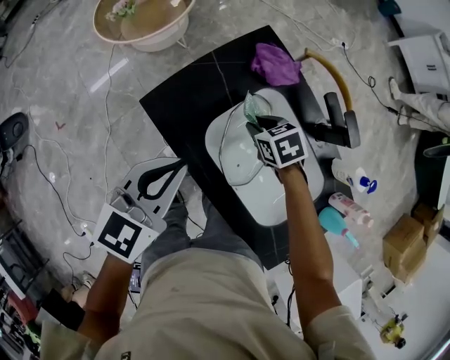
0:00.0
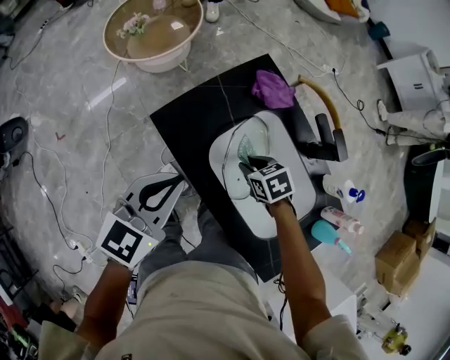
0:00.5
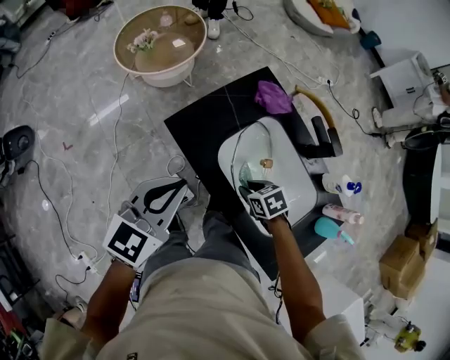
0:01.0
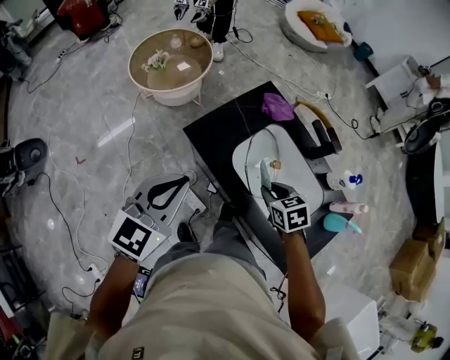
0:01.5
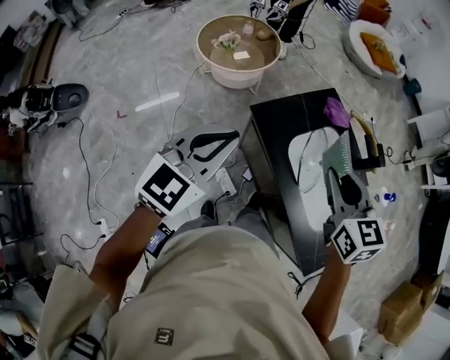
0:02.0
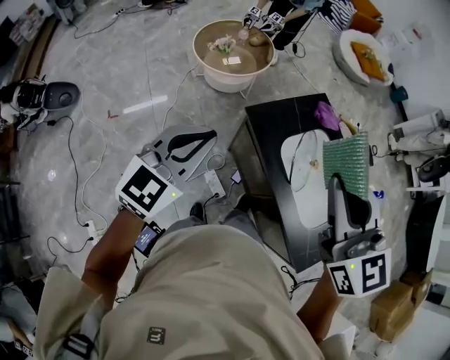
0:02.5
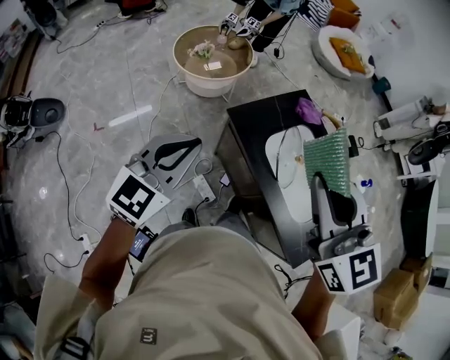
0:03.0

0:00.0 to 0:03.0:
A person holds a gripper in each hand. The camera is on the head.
0:00.0 to 0:01.5: The left gripper shifts some 20 cm upward, to the left and backward. The right gripper travels backward and upward by about 20 cm.
0:01.5 to 0:03.0: The left gripper goes about 15 cm to the left, backward and upward. Meanwhile the right gripper goes some 40 cm upward, and points its fingers approximately 50 degrees further upward.

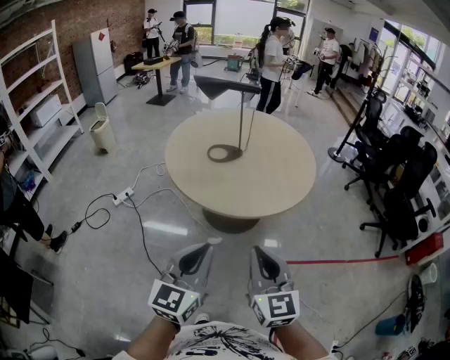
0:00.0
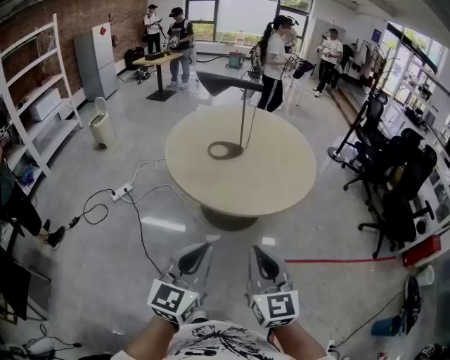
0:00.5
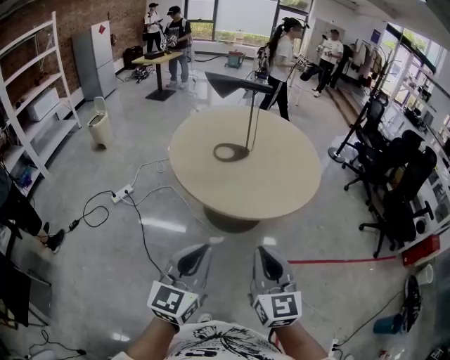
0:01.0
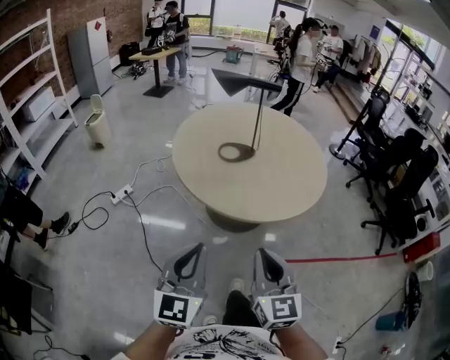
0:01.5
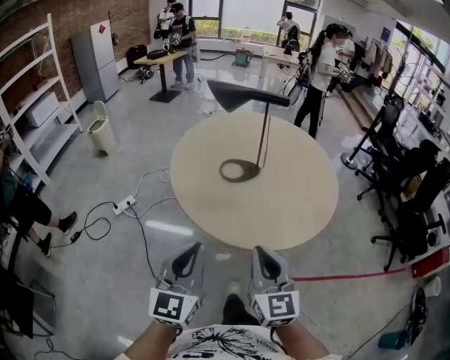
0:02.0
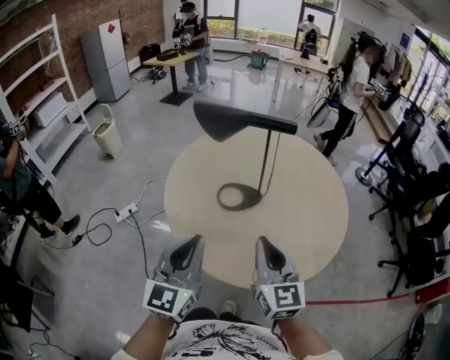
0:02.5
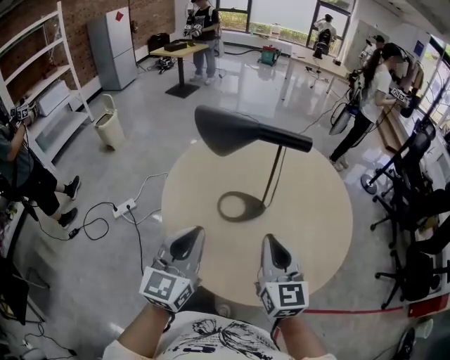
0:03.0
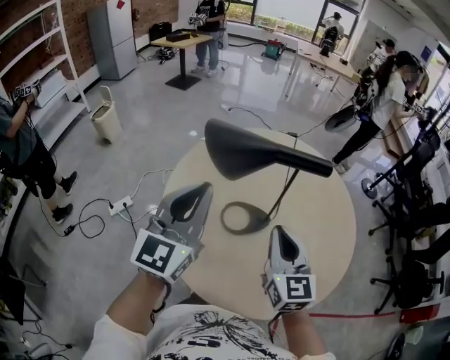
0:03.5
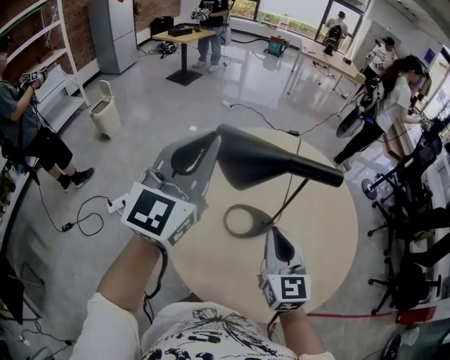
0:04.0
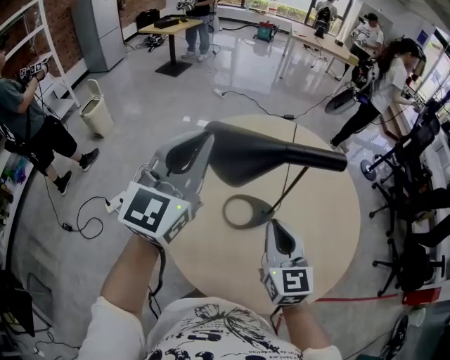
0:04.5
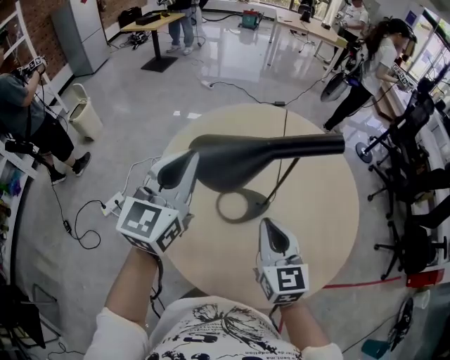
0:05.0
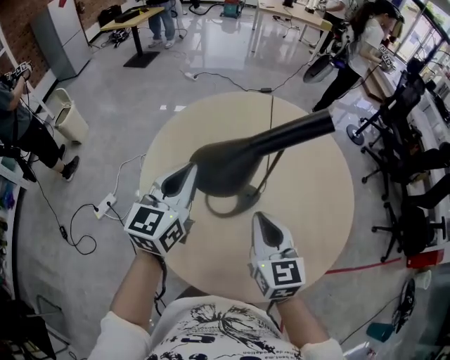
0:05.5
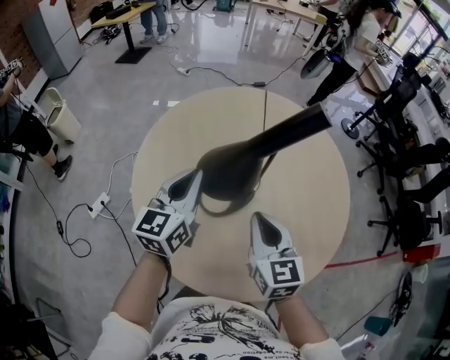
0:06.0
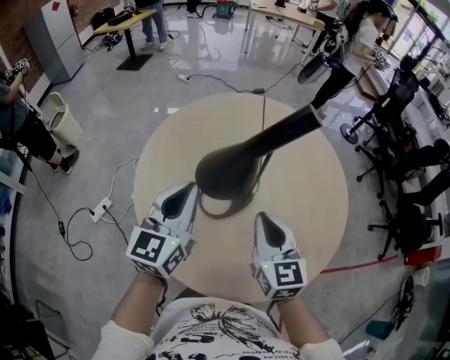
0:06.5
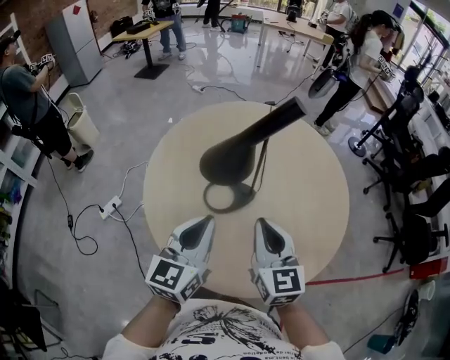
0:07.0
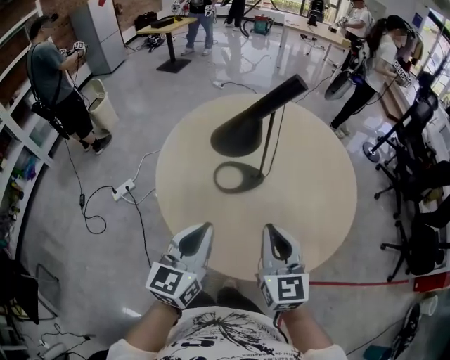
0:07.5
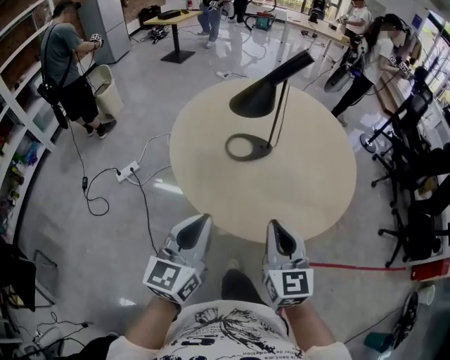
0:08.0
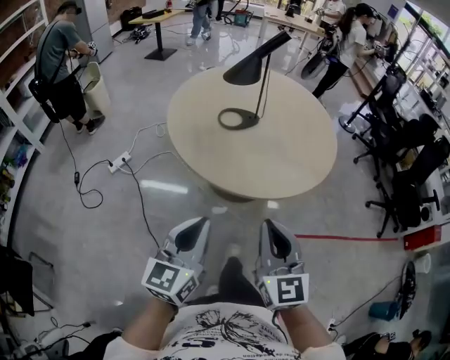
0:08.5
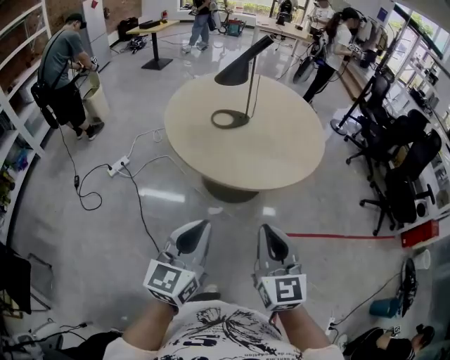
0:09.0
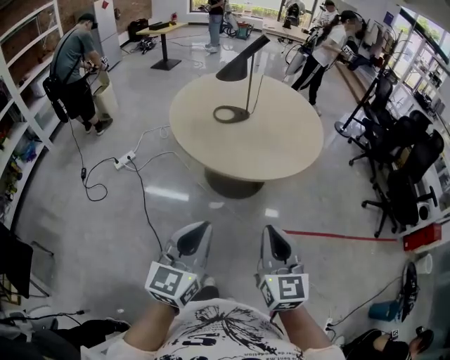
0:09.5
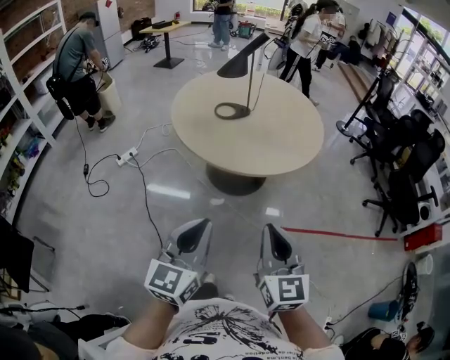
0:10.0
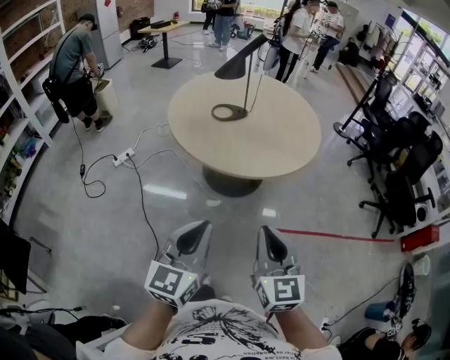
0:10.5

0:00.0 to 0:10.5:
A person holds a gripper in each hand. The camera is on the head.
0:00.0 to 0:02.0: Both grippers move forward and to the left, about 20 cm.
0:02.0 to 0:04.0: The right gripper heads forward, covering approximately 35 cm. Meanwhile the left gripper travels forward and upward by approximately 50 cm.
0:04.0 to 0:06.5: The right gripper changes place by about 5 cm; the left gripper is displaced downward by some 20 cm, and changes its angle by roughly 30 degrees.
0:06.5 to 0:08.5: The pair of grippers is taken backward, roughly 50 cm.
0:08.5 to 0:10.5: The grippers both shift backward and to the right by roughly 15 cm.

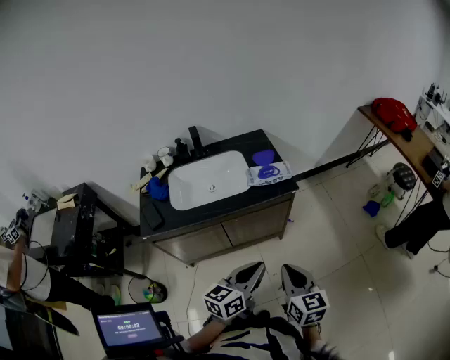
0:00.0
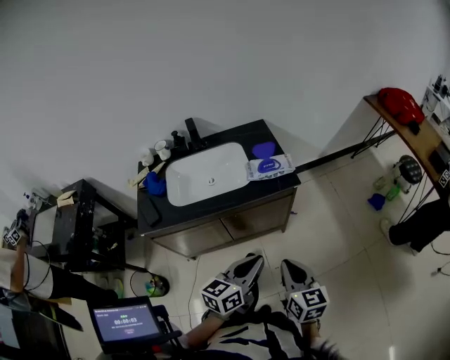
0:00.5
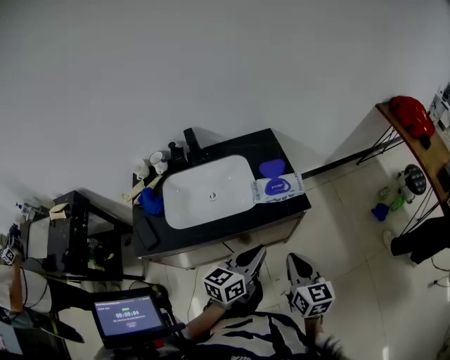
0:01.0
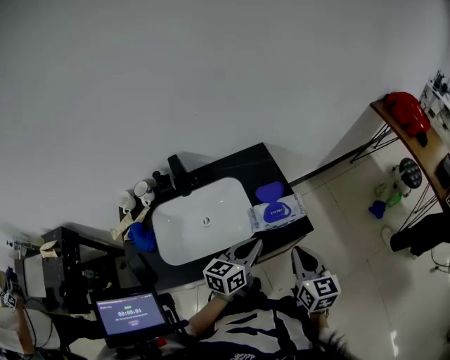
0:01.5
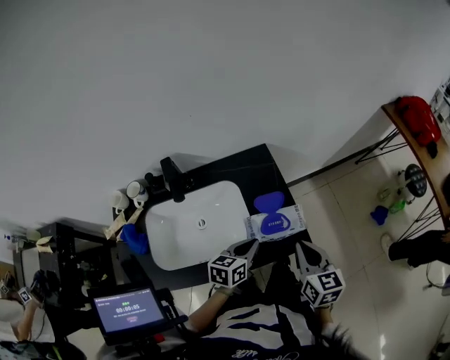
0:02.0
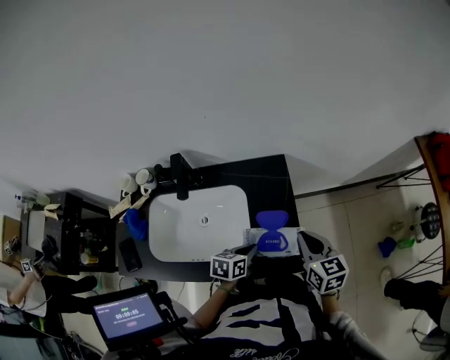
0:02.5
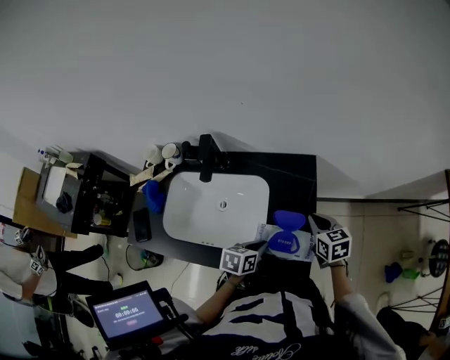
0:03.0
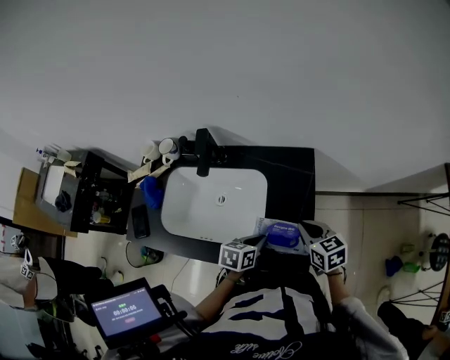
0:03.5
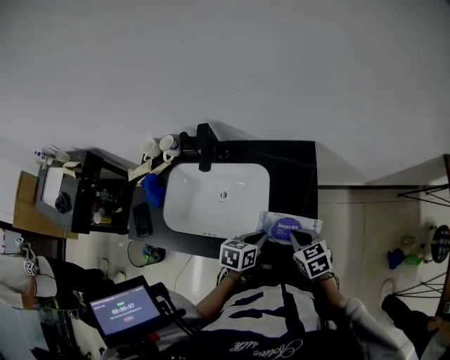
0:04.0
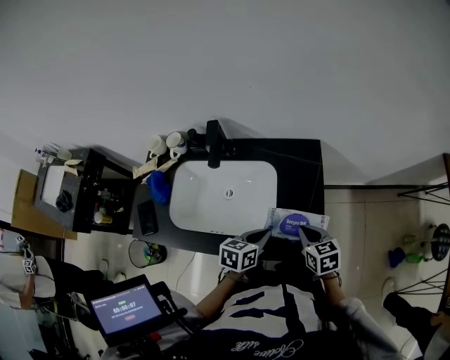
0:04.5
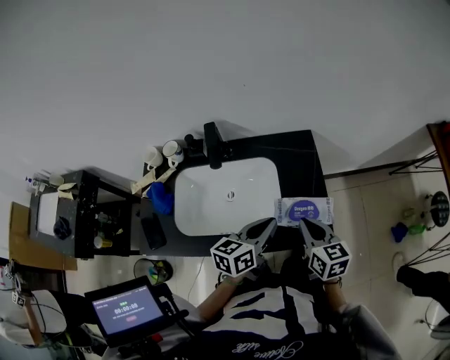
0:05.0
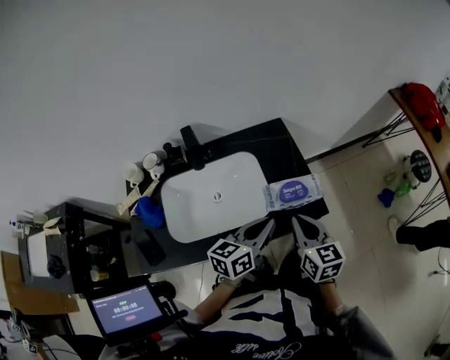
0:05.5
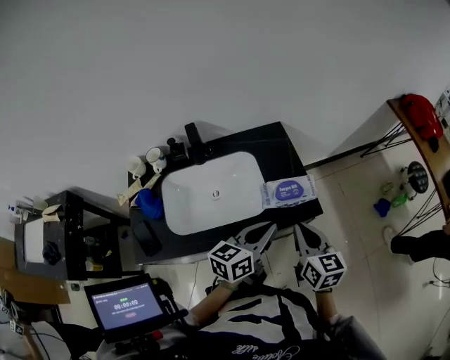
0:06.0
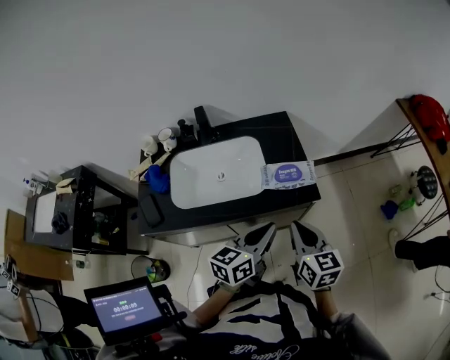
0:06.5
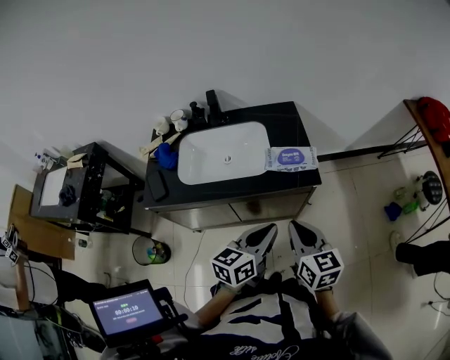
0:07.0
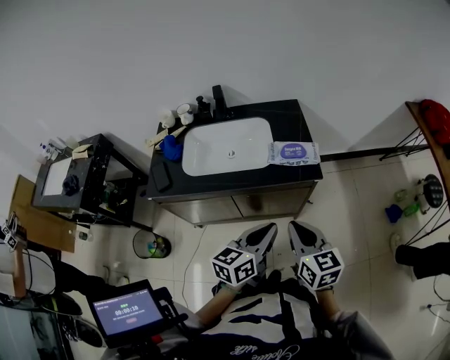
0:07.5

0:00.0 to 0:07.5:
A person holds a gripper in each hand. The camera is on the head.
0:00.0 to 0:02.0: The grippers both shift forward by some 40 cm. The left gripper turns by about 20 degrees.
0:02.0 to 0:04.0: The left gripper is displaced downward by about 5 cm, and swivels some 20 degrees. The right gripper goes about 15 cm downward, and changes its angle by roughly 50 degrees.
0:04.0 to 0:05.5: Both grippers move upward, roughly 15 cm. The right gripper turns by roughly 40 degrees, while the left gripper points its fingers some 30 degrees further upward.
0:05.5 to 0:07.5: The grippers both shift backward by some 20 cm.

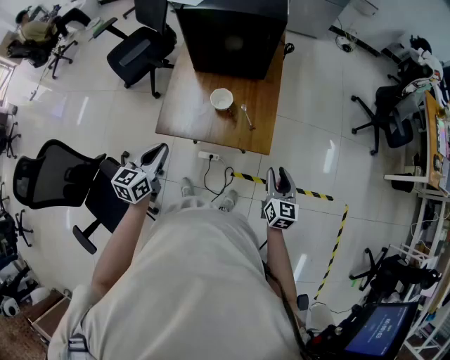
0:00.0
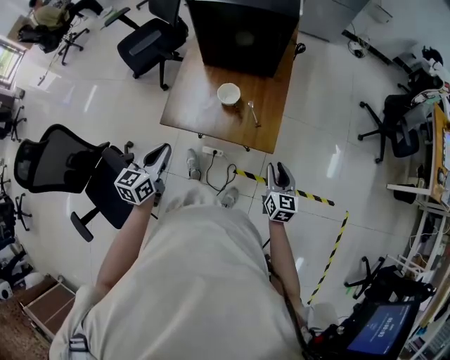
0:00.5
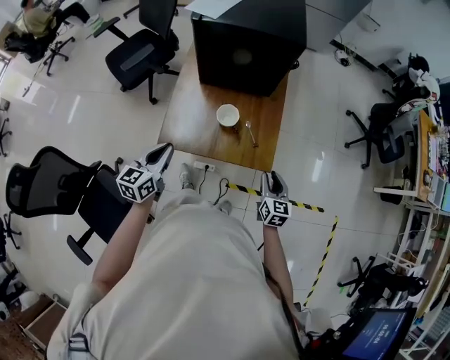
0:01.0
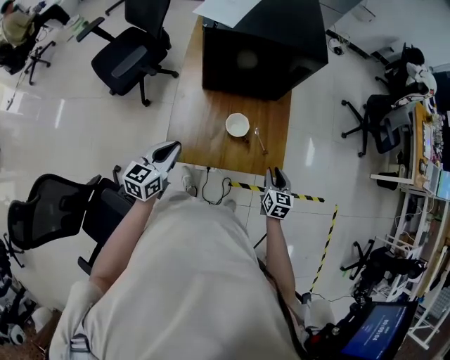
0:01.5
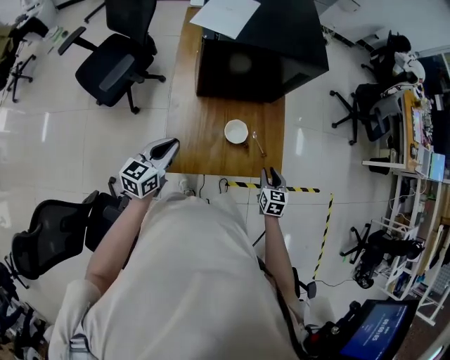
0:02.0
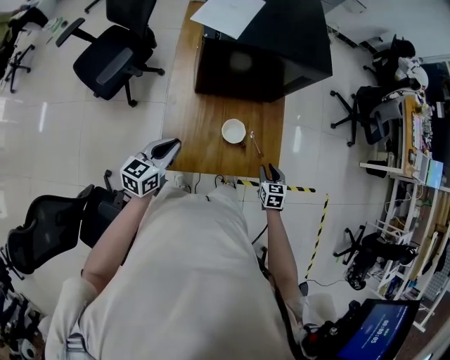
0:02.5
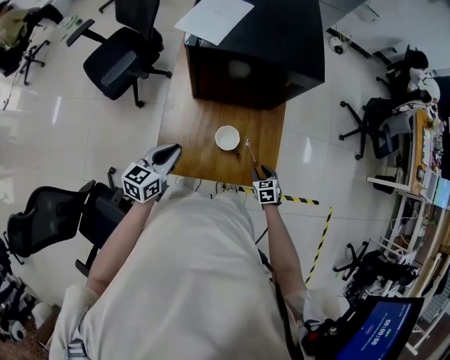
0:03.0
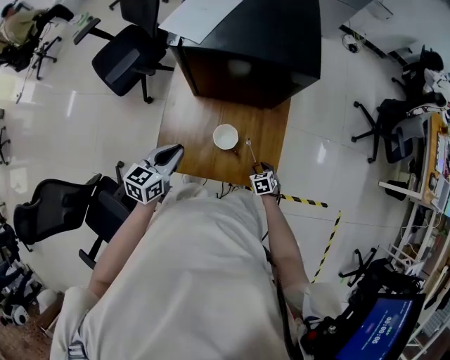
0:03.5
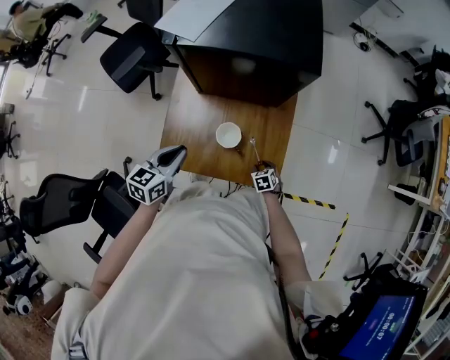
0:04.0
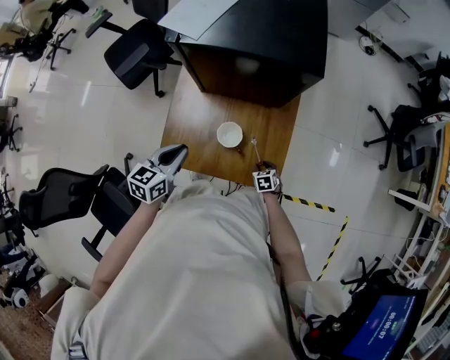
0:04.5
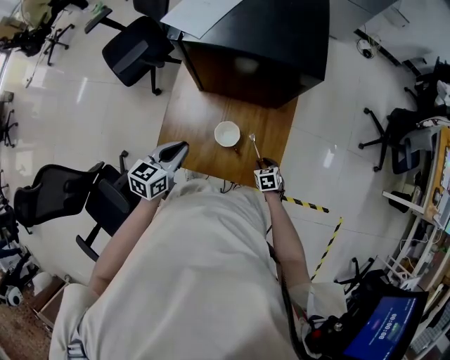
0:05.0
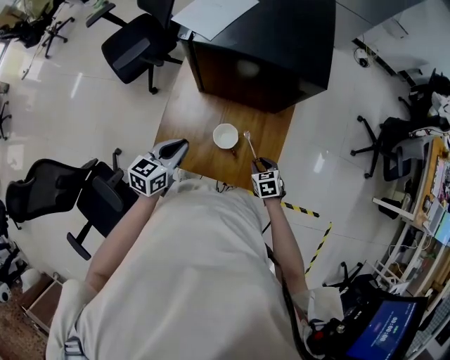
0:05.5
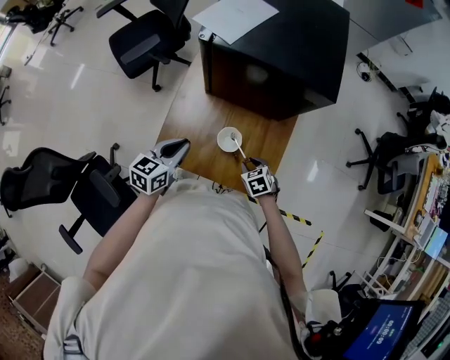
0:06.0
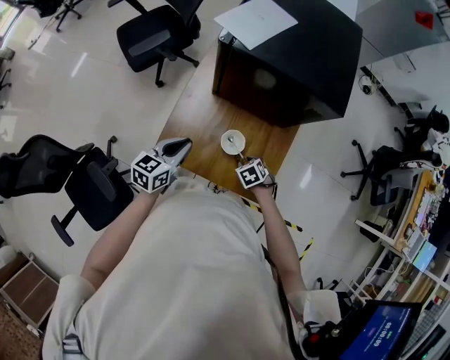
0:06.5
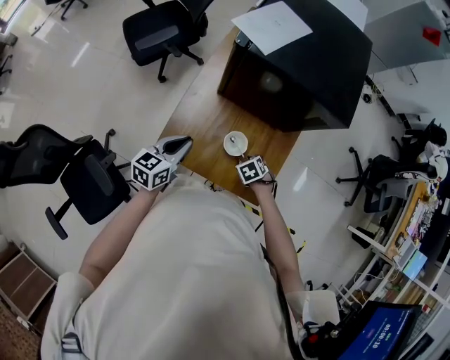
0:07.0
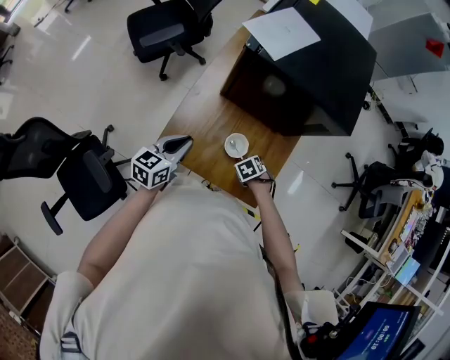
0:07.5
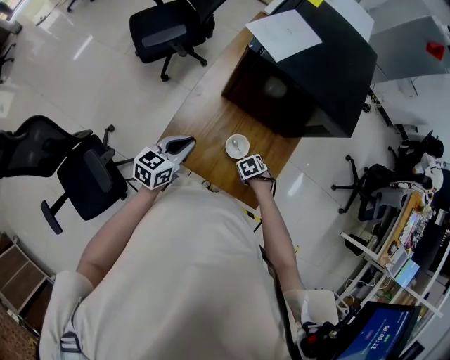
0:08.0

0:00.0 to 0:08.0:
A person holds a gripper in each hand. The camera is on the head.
0:00.0 to 0:02.0: The right gripper is displaced to the left, forward and downward by about 20 cm, and changes its angle by roughly 20 degrees. Meanwhile the left gripper goes approximately 25 cm forward and to the left.
0:02.0 to 0:04.0: The left gripper is displaced to the right by some 10 cm; the right gripper shifts about 20 cm downward, and changes its angle by approximately 40 degrees.
0:04.0 to 0:06.0: The right gripper goes approximately 15 cm upward and to the left.
0:06.0 to 0:08.0: The right gripper ends up roughly 5 cm from where it was, and changes its angle by about 20 degrees.
